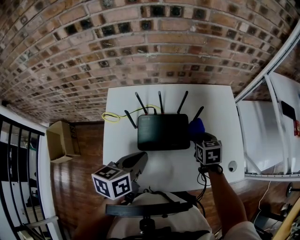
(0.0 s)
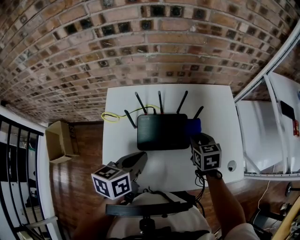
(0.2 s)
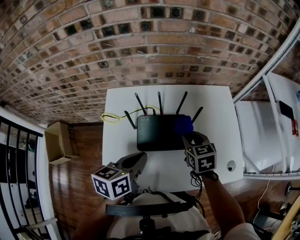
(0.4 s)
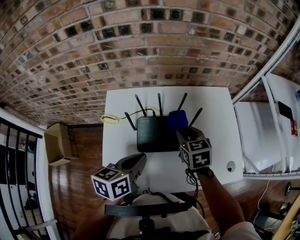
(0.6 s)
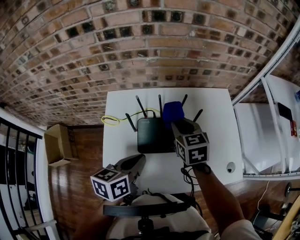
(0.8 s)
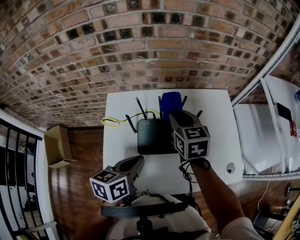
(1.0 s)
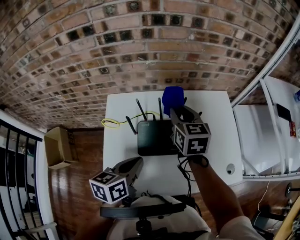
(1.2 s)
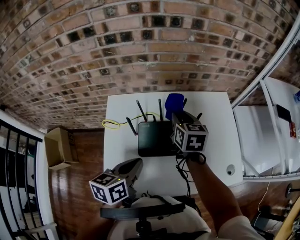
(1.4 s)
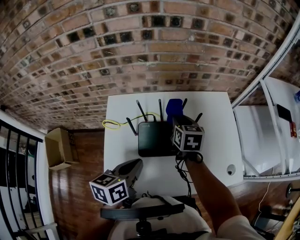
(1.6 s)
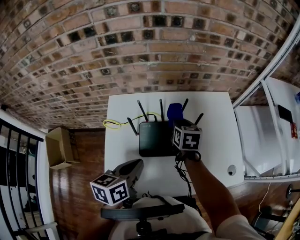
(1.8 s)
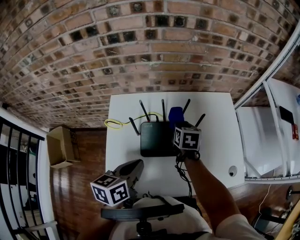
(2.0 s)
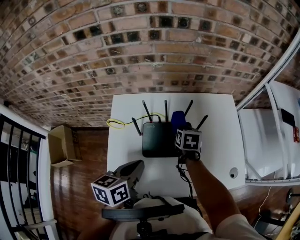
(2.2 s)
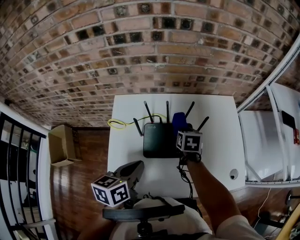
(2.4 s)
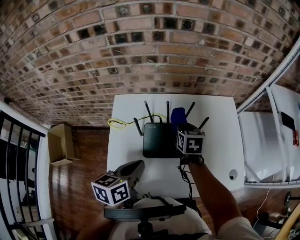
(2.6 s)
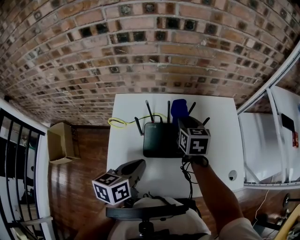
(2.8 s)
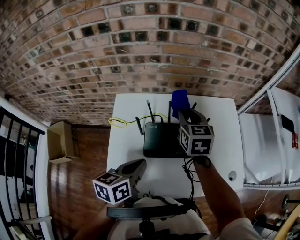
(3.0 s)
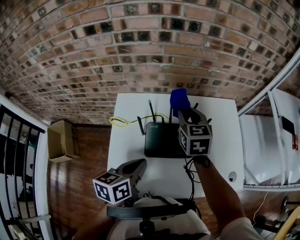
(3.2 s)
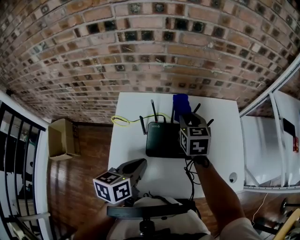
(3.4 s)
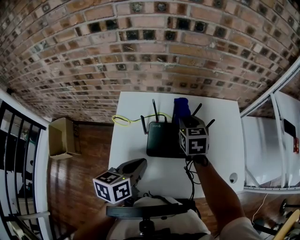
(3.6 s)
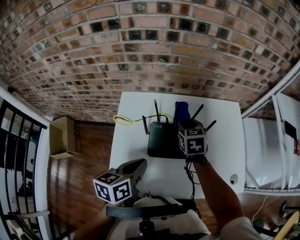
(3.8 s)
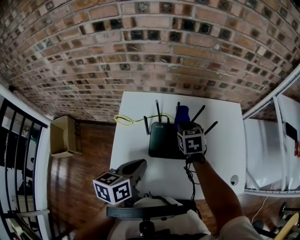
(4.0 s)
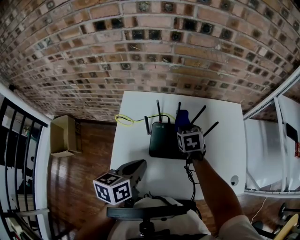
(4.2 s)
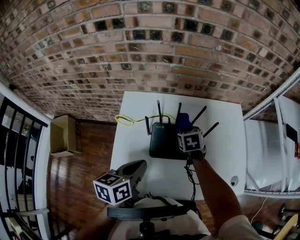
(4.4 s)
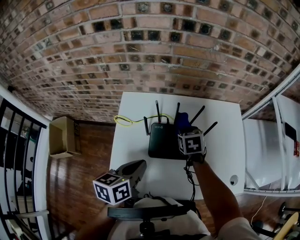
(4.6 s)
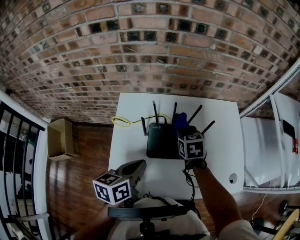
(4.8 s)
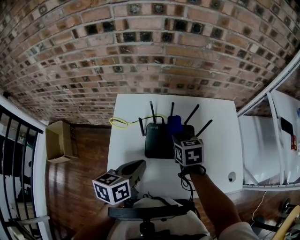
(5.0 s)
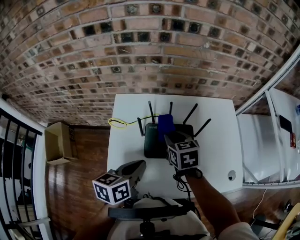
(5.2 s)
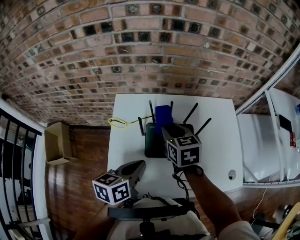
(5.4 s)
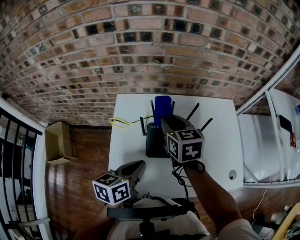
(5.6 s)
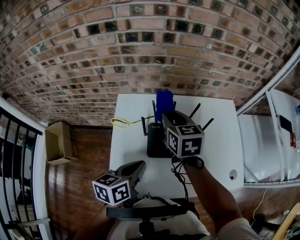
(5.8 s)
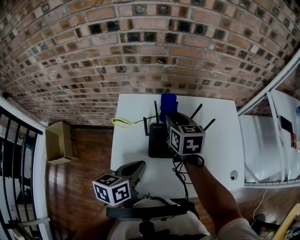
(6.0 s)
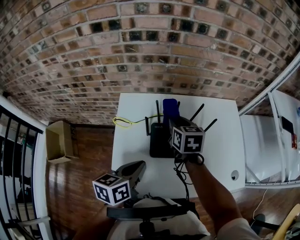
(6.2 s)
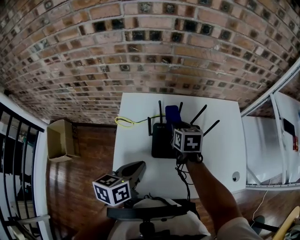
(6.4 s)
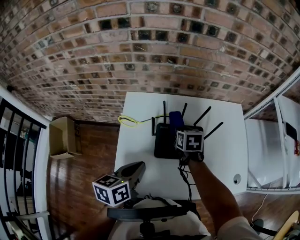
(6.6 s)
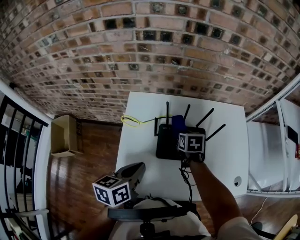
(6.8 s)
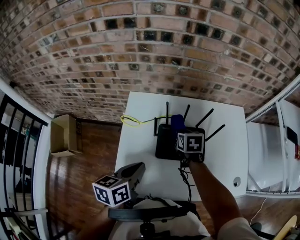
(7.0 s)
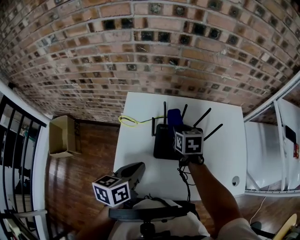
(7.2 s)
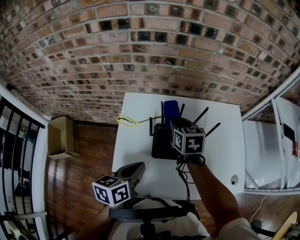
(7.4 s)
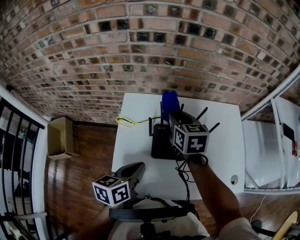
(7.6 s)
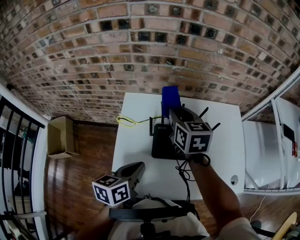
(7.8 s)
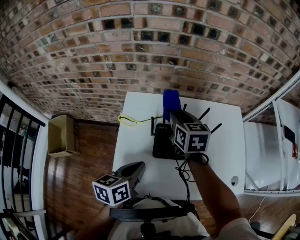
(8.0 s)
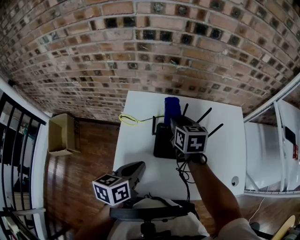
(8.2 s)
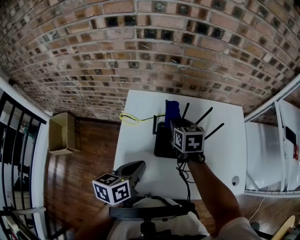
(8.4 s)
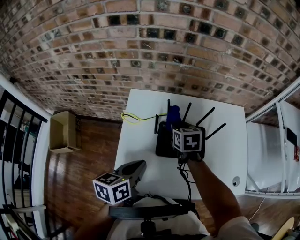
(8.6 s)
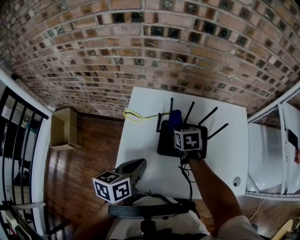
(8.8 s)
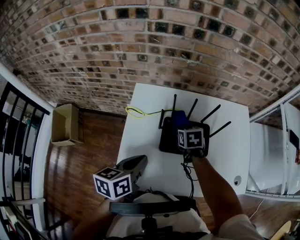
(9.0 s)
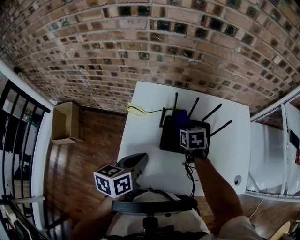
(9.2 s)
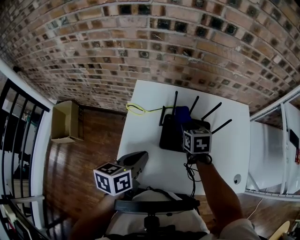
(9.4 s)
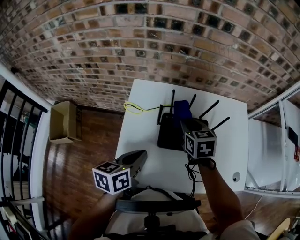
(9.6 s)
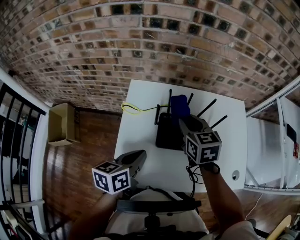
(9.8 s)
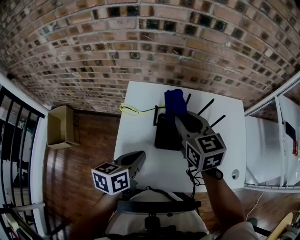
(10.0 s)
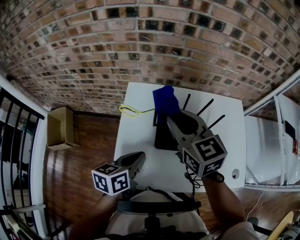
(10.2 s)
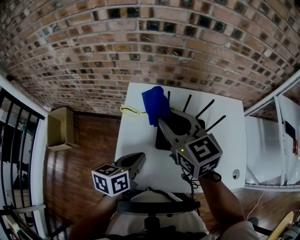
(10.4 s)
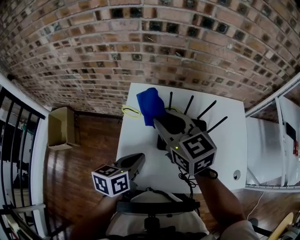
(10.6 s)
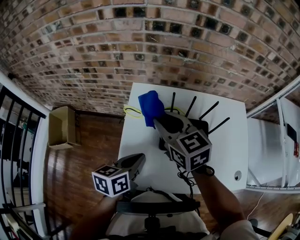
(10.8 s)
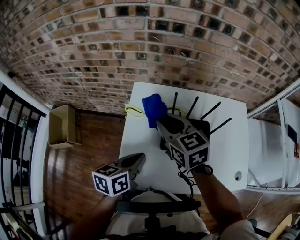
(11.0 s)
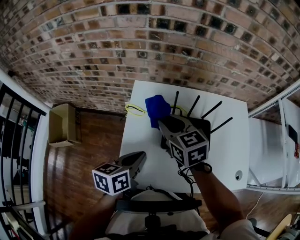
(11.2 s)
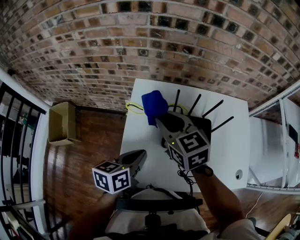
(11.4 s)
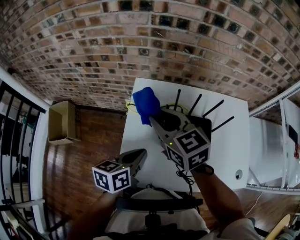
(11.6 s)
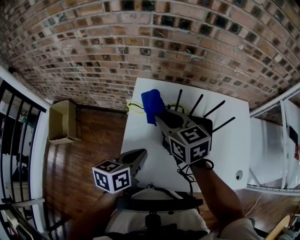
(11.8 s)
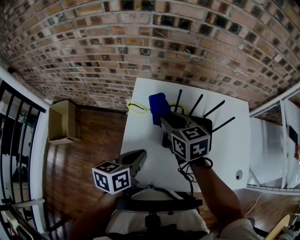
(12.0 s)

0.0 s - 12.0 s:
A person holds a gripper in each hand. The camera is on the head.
0.0 s - 1.6 s: The right gripper shifts about 15 cm to the left, upward and forward.
1.6 s - 3.0 s: The right gripper moves upward, approximately 5 cm.
3.0 s - 4.4 s: The right gripper moves downward, approximately 15 cm, and swivels roughly 30 degrees.
4.4 s - 6.0 s: The right gripper heads upward and to the left, covering approximately 15 cm, and rotates some 30 degrees.
6.0 s - 7.6 s: The right gripper moves about 15 cm downward and comes back.
7.6 s - 9.0 s: The right gripper moves downward, about 15 cm, and swivels some 30 degrees.
9.0 s - 10.4 s: The right gripper goes approximately 25 cm upward, and angles its fingers upward, by roughly 40 degrees.
10.4 s - 12.0 s: The right gripper swings up and down, about 10 cm each way, with 2 reversals.

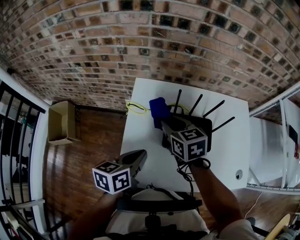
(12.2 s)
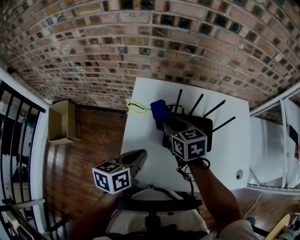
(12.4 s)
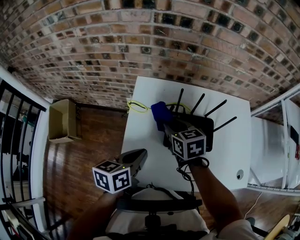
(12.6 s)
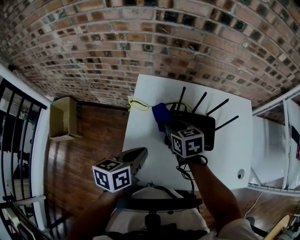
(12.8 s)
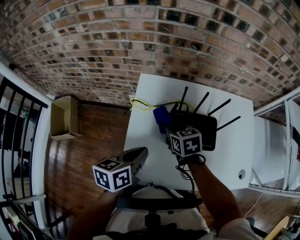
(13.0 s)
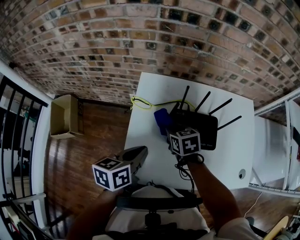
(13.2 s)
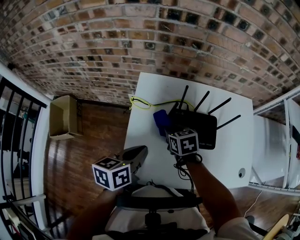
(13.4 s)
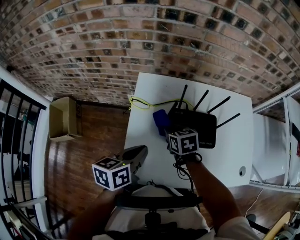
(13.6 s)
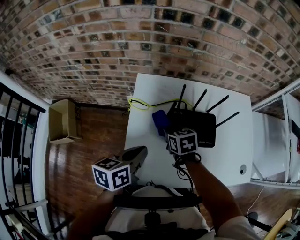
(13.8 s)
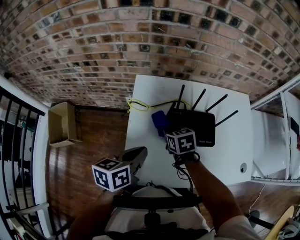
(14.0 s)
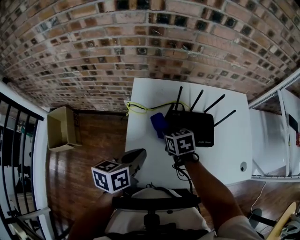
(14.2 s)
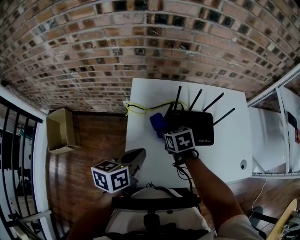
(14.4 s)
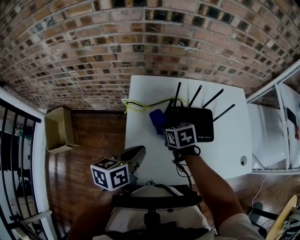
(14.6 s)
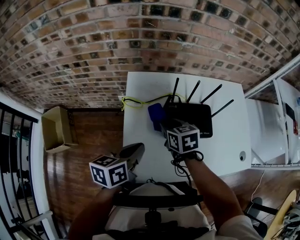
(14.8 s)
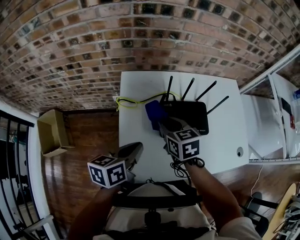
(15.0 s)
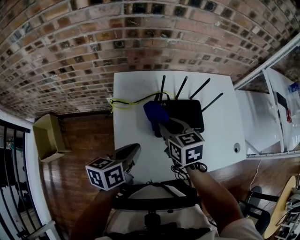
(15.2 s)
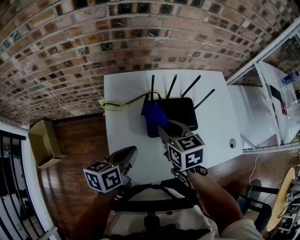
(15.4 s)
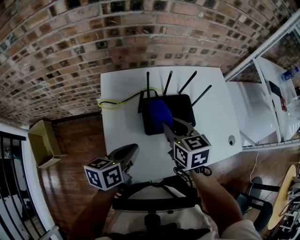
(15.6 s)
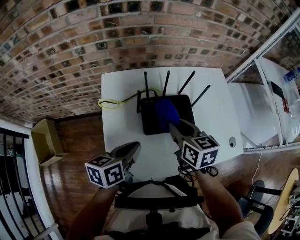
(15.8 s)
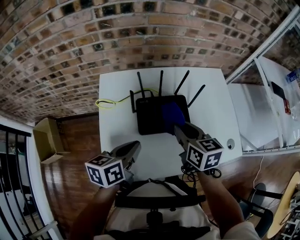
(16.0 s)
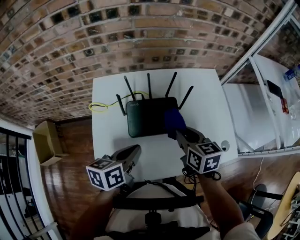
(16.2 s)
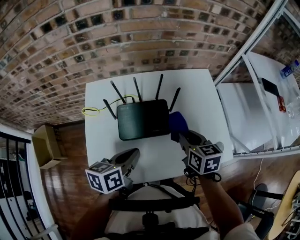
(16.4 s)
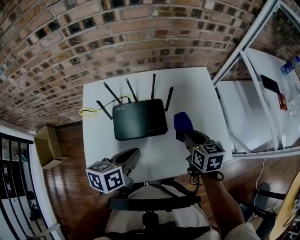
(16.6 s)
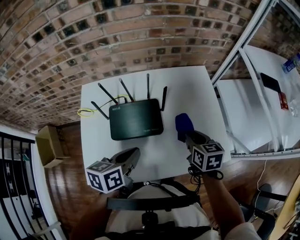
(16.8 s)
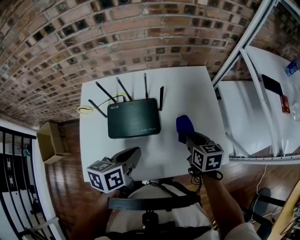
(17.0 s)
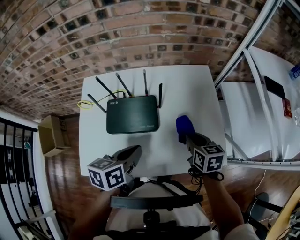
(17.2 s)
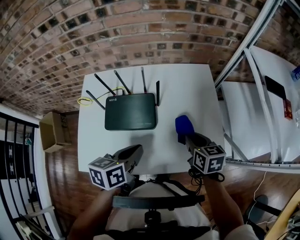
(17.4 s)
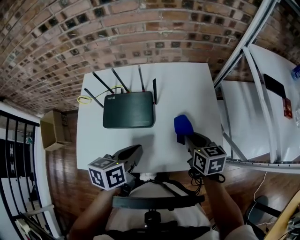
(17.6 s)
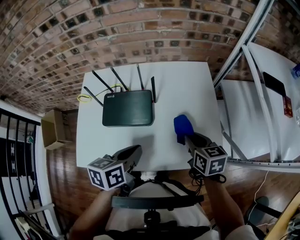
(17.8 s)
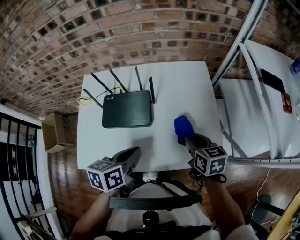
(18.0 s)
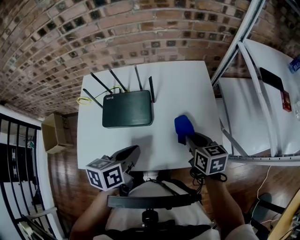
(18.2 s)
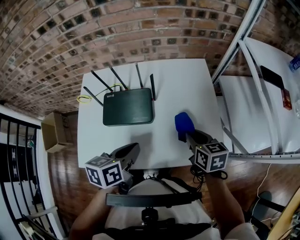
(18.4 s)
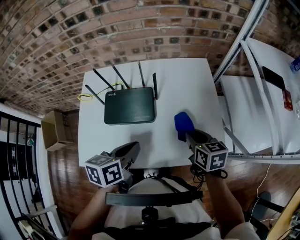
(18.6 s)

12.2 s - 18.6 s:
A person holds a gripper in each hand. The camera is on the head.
12.2 s - 13.8 s: The right gripper moves downward, about 10 cm.
13.8 s - 15.4 s: The right gripper is displaced upward by some 10 cm.
15.4 s - 17.0 s: Both grippers travel together to the right, about 35 cm.
17.0 s - 18.6 s: The right gripper ends up about 5 cm from where it was. Meanwhile the left gripper shifts by approximately 5 cm.

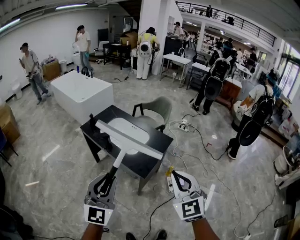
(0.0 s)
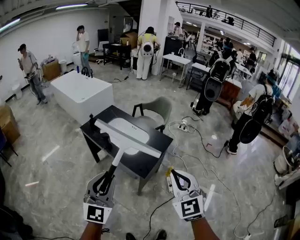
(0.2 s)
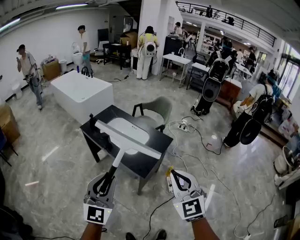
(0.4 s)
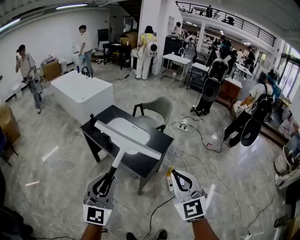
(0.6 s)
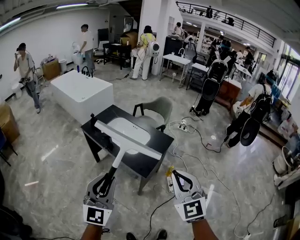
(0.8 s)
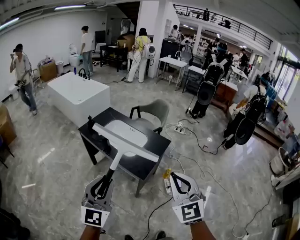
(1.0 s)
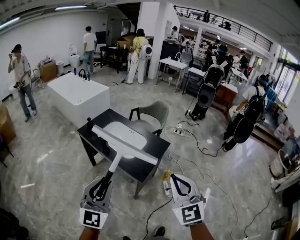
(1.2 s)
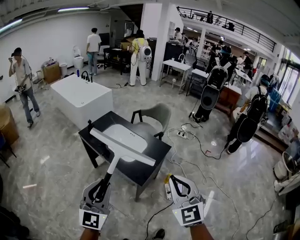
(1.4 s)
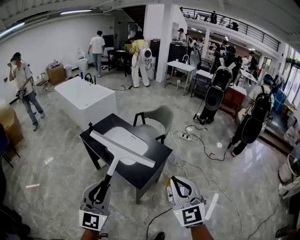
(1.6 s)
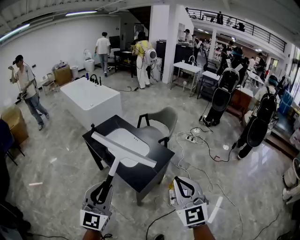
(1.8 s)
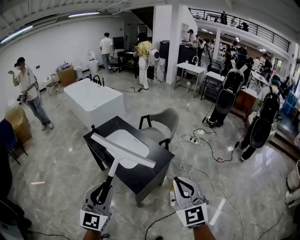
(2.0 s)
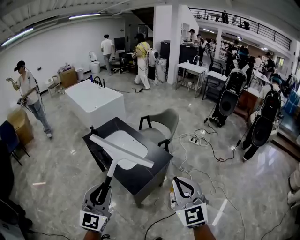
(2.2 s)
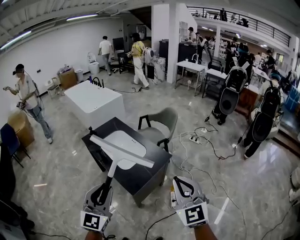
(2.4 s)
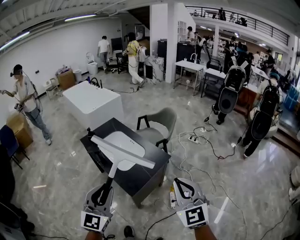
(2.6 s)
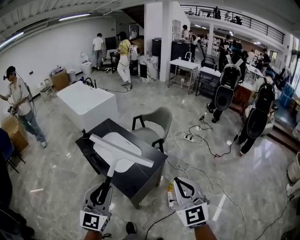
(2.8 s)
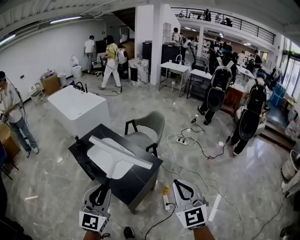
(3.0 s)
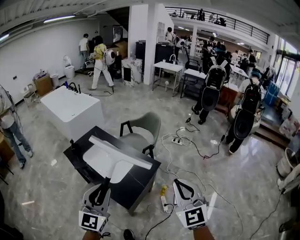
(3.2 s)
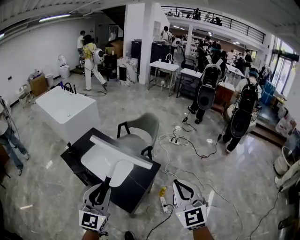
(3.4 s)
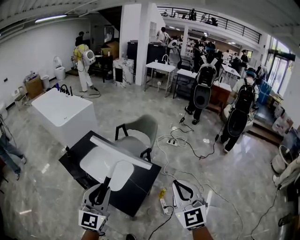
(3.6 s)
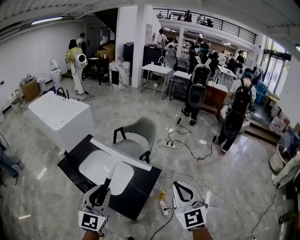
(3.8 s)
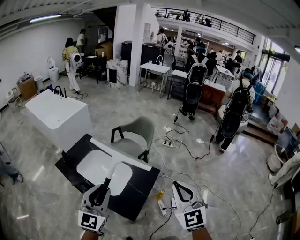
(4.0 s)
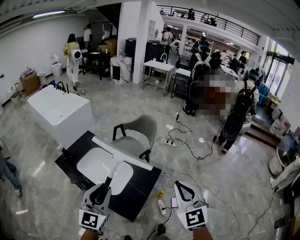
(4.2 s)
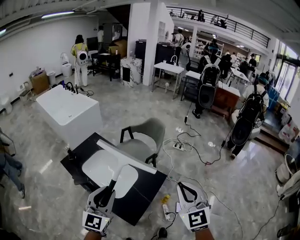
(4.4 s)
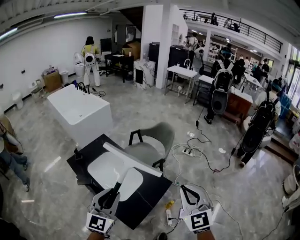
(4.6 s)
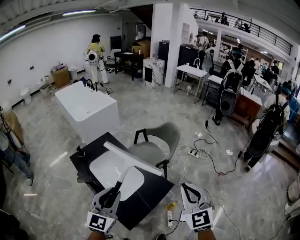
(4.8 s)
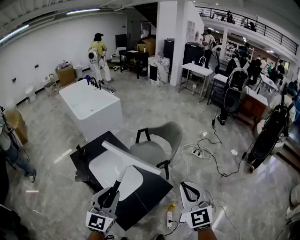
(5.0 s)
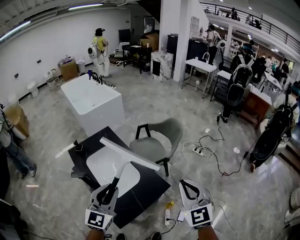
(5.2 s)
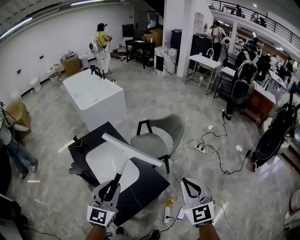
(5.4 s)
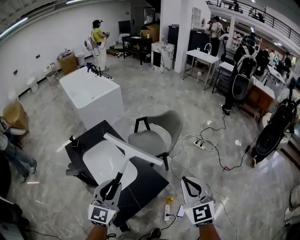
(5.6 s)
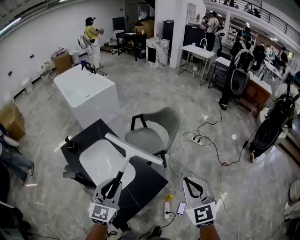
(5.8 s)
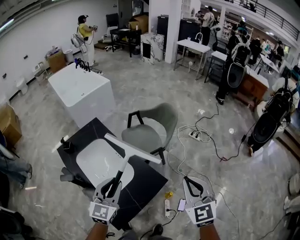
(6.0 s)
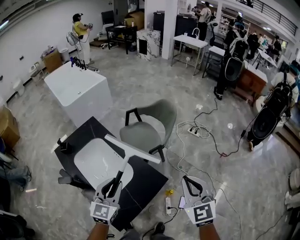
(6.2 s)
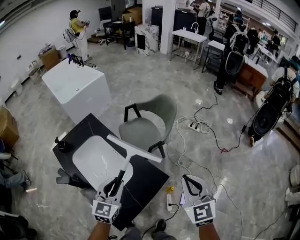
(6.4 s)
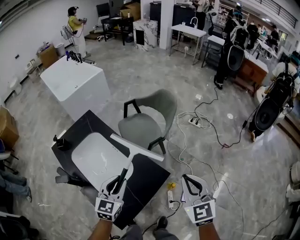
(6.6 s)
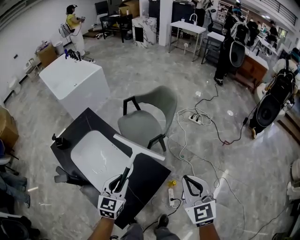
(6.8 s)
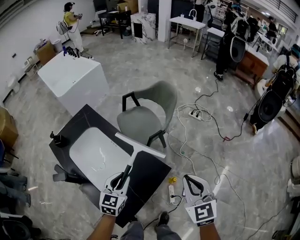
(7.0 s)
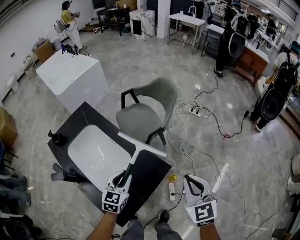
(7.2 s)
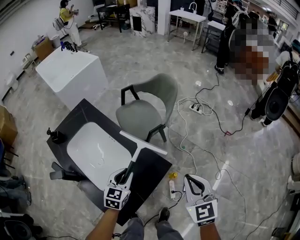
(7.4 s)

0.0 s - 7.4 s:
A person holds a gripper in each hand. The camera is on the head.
0.0 s - 1.4 s: There are only small adjustments of the grippers.
1.4 s - 3.0 s: Both grippers travel together to the right and forward, approximately 20 cm.
3.0 s - 4.4 s: Both grippers travel together forward and to the left, approximately 20 cm.
4.4 s - 6.0 s: The grippers both shift forward, to the right and downward by roughly 25 cm.
6.0 s - 7.4 s: The two grippers go about 20 cm downward. The left gripper turns by approximately 20 degrees.
